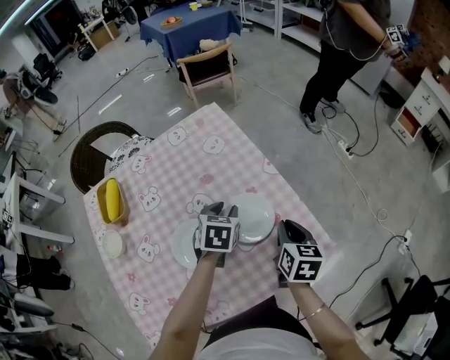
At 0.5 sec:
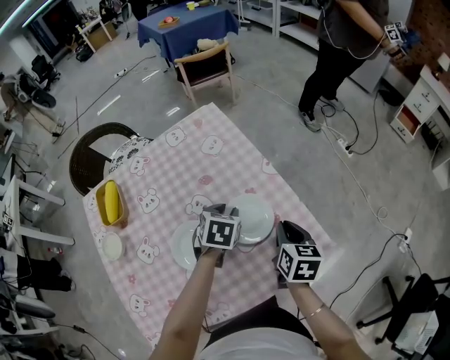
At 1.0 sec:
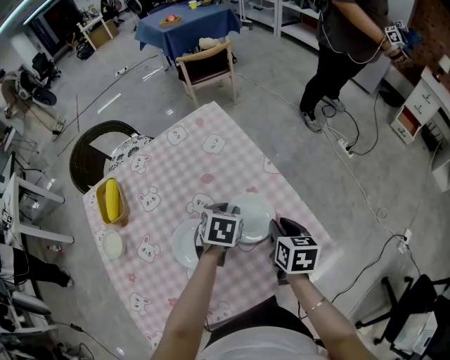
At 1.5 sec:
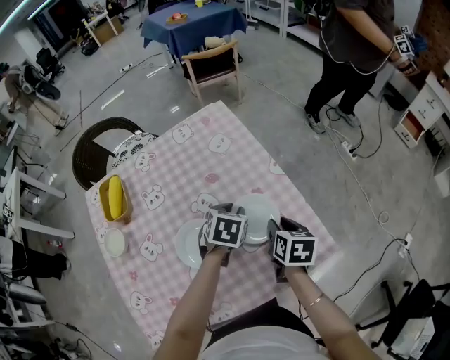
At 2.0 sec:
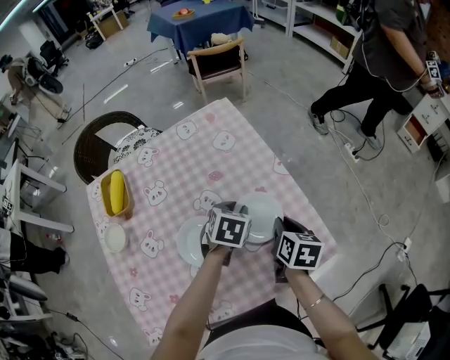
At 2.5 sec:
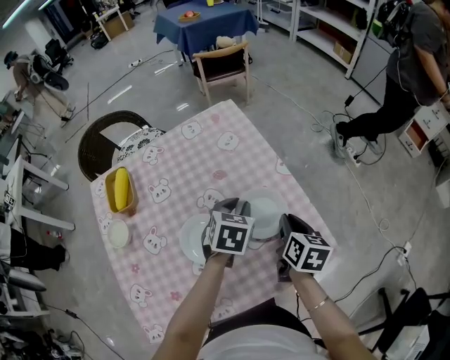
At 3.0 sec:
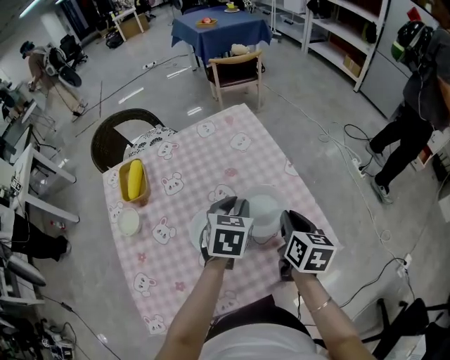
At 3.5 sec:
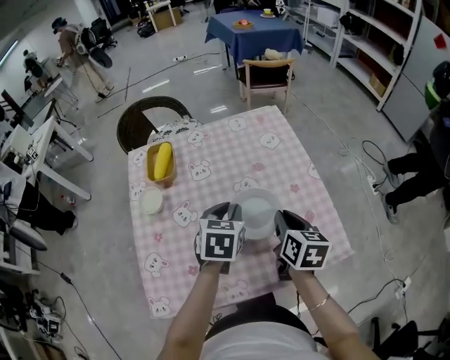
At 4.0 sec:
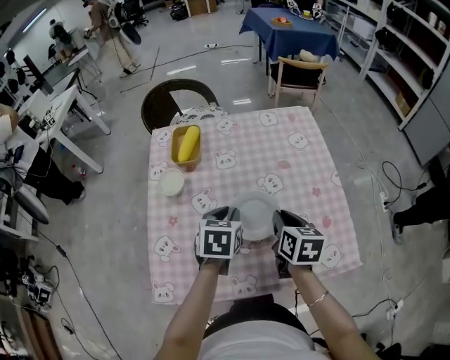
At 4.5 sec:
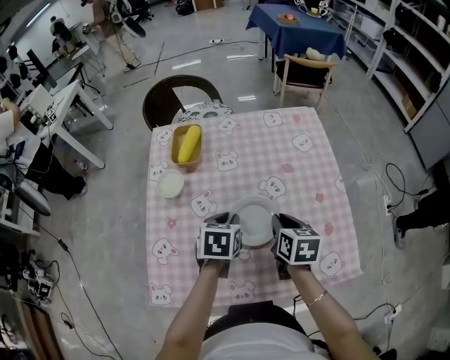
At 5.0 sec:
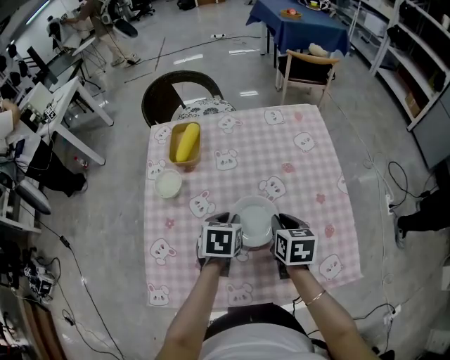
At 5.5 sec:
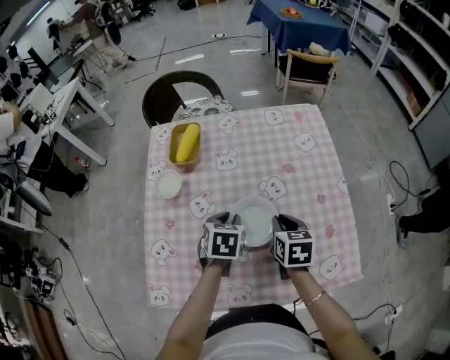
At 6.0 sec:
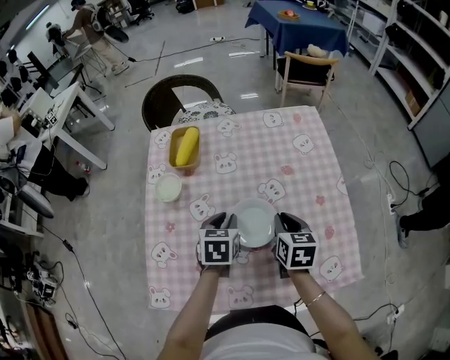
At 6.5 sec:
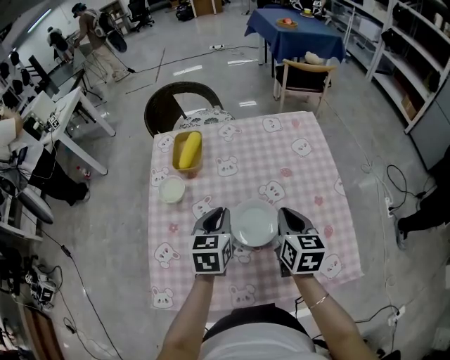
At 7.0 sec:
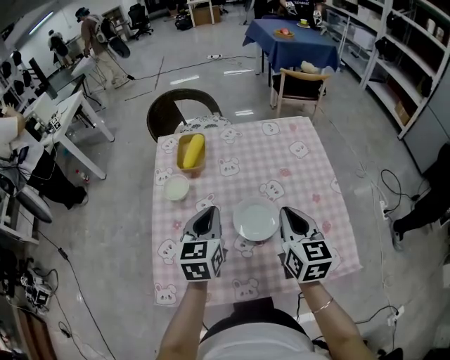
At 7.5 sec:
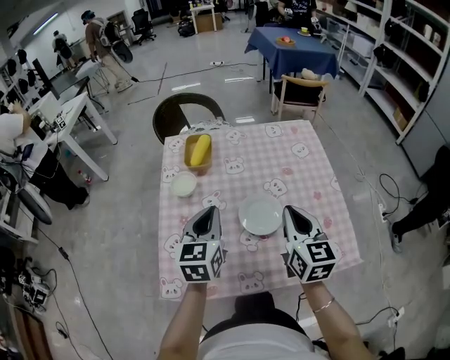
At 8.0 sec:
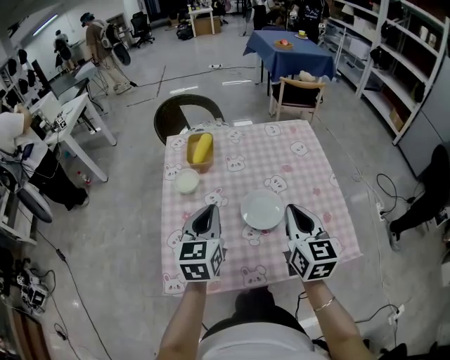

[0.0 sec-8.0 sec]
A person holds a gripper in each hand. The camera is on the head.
0.0 sec to 2.0 sec: The grippers stay close to where they were, moving slightly.
2.0 sec to 4.0 sec: The left gripper shifts by approximately 25 cm, and swivels approximately 30 degrees; the right gripper moves some 20 cm, and turns by approximately 30 degrees.
4.0 sec to 6.0 sec: The right gripper moves about 5 cm. The left gripper shifts by approximately 5 cm.
6.0 sec to 8.0 sec: The left gripper shifts some 20 cm upward, backward and to the left, and points its fingers about 30 degrees further upward; the right gripper heads upward and backward, covering about 20 cm, and turns by about 30 degrees.

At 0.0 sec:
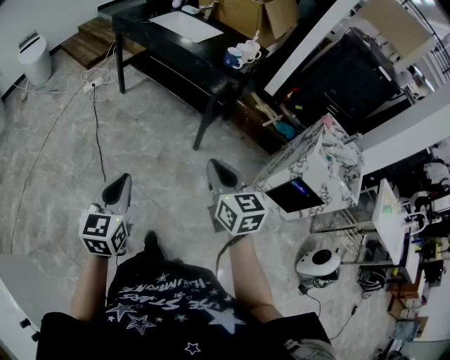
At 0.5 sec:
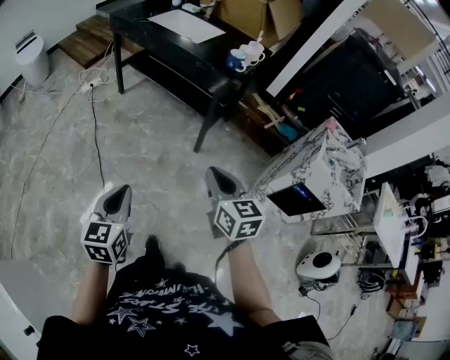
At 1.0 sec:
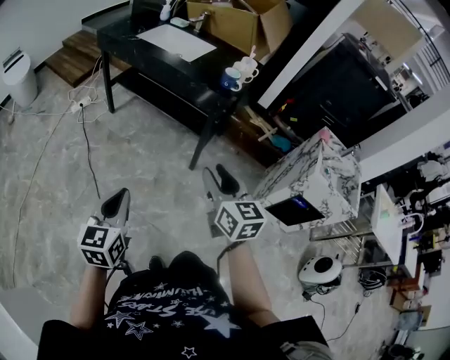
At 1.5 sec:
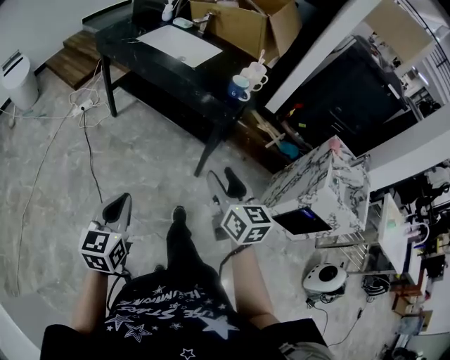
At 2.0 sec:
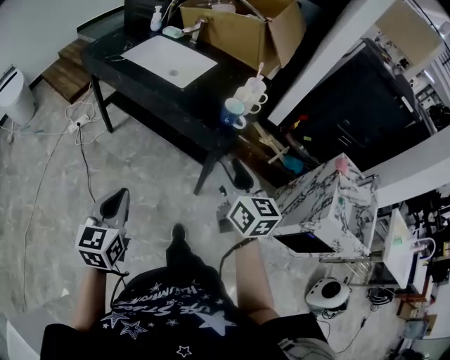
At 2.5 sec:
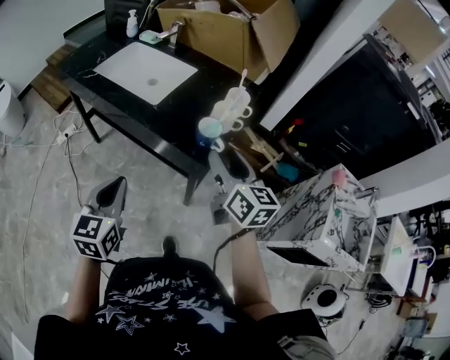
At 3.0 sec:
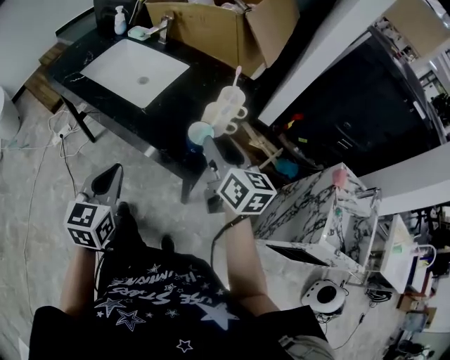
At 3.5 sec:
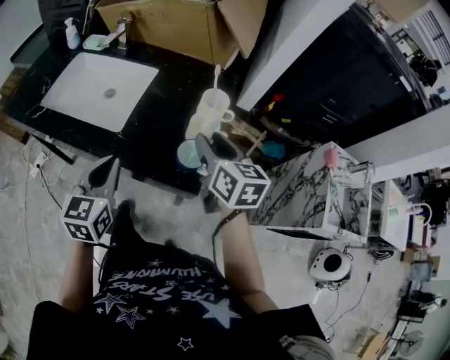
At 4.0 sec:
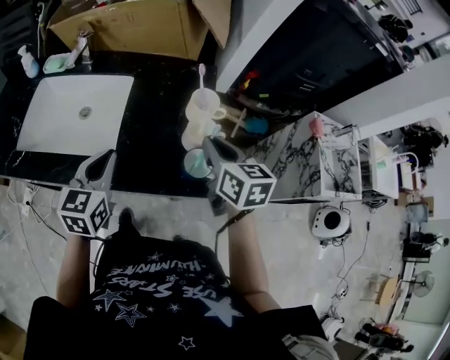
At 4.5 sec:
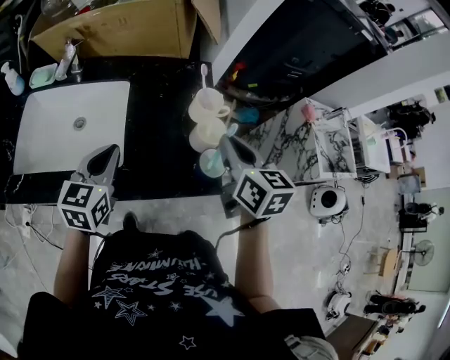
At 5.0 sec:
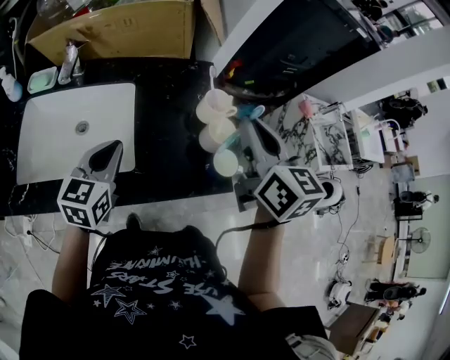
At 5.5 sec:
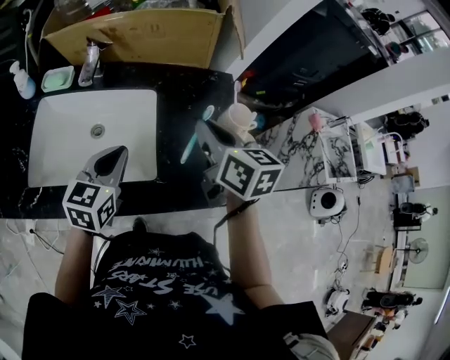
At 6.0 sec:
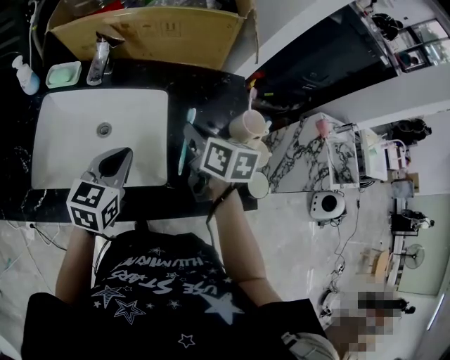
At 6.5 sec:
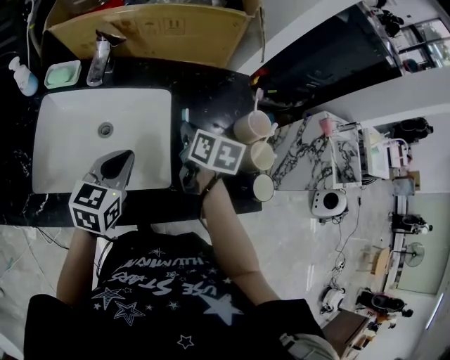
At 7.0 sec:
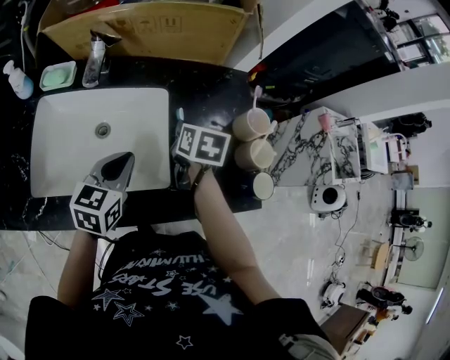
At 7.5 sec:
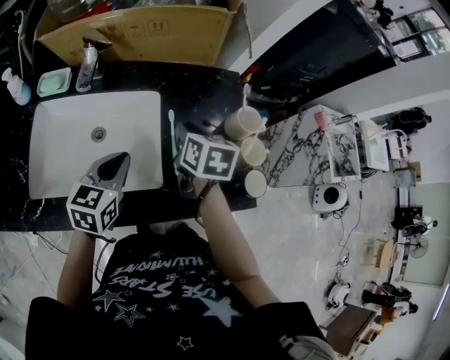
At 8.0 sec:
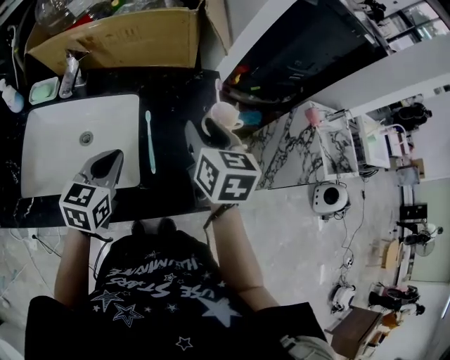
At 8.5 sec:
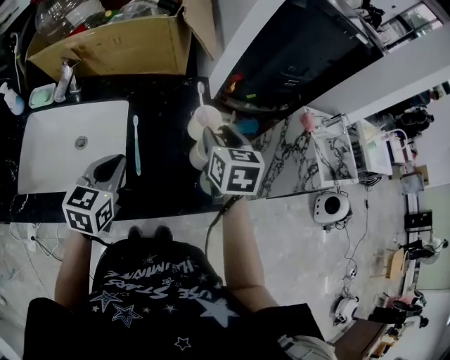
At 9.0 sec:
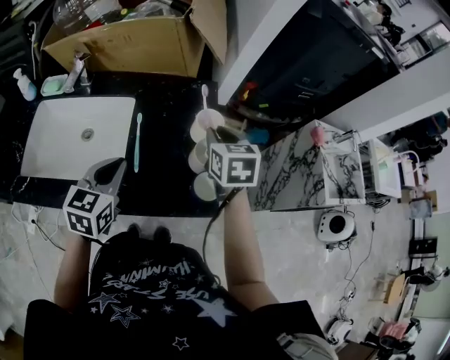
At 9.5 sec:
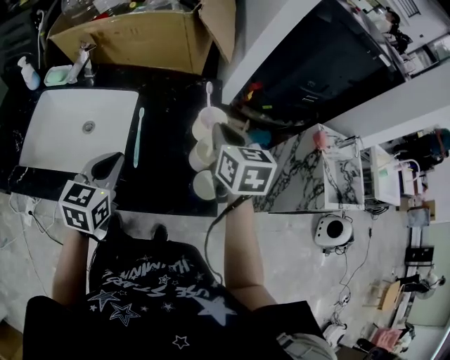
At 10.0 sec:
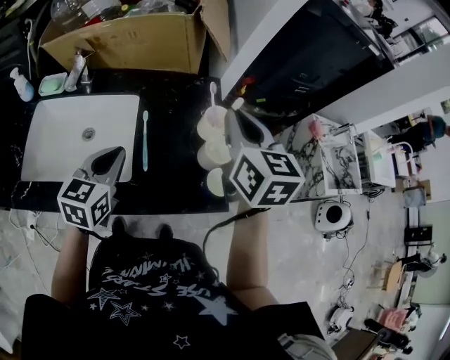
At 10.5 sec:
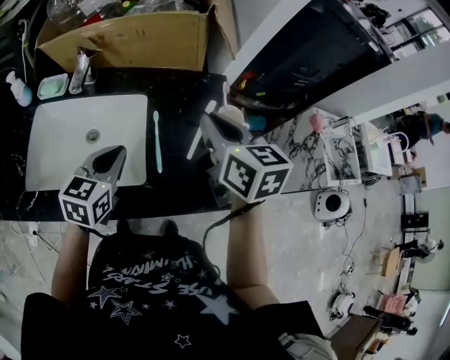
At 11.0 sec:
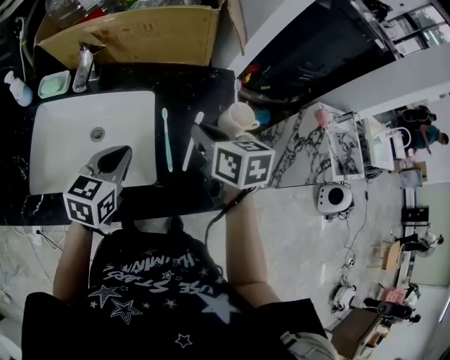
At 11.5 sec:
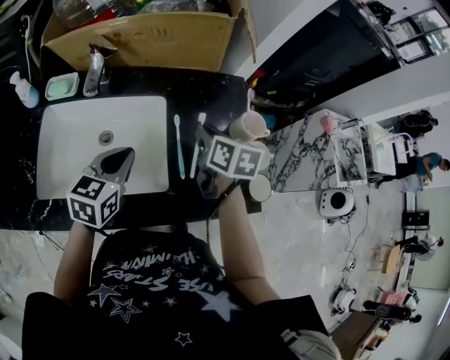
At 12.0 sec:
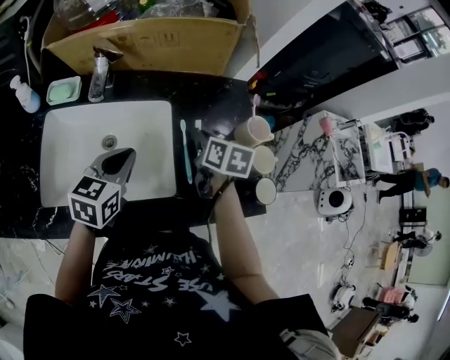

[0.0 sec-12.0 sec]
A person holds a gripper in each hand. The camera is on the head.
0.0 sec to 2.0 sec: Both grippers travel together forward, some 35 cm. The right gripper opens its fingers.
2.0 sec to 4.0 sec: The left gripper moves about 50 cm, and turns by roughly 30 degrees. Meanwhile the right gripper ends up roughly 30 cm from where it was, swivels approximately 30 degrees, and closes up.
4.0 sec to 6.0 sec: The right gripper shifts roughly 20 cm to the left and forward; the left gripper shifts roughly 15 cm to the left and forward.
6.0 sec to 8.0 sec: The right gripper goes about 10 cm to the right and upward, changes its angle by about 20 degrees, and opens up. Meanwhile the left gripper goes some 5 cm to the right.
8.0 sec to 10.0 sec: The right gripper moves upward and to the right, approximately 10 cm, and closes up.
10.0 sec to 12.0 sec: The left gripper goes roughly 10 cm to the left; the right gripper shifts some 25 cm downward and to the left, and turns by roughly 30 degrees.

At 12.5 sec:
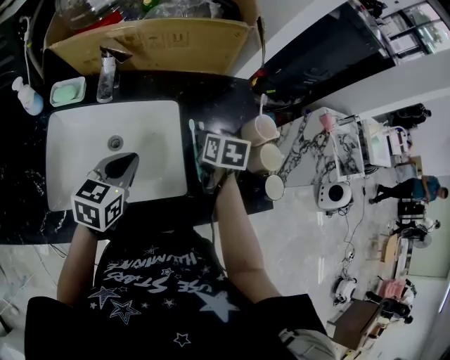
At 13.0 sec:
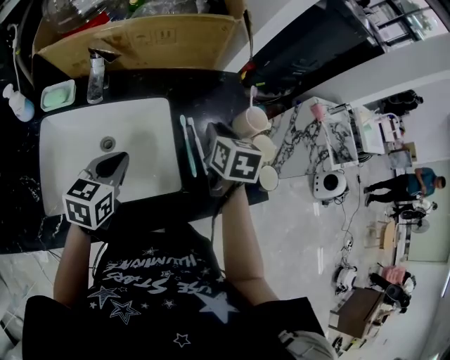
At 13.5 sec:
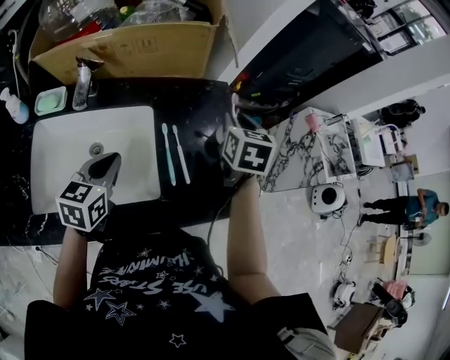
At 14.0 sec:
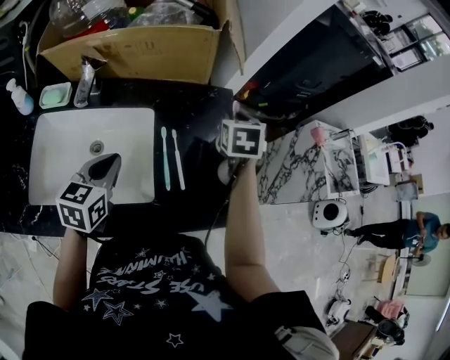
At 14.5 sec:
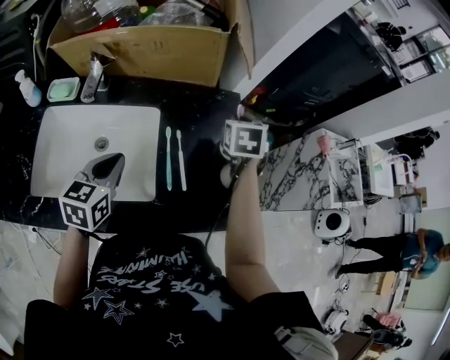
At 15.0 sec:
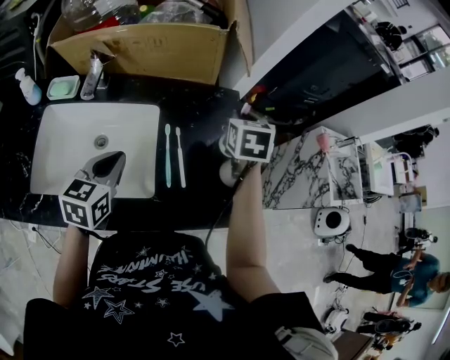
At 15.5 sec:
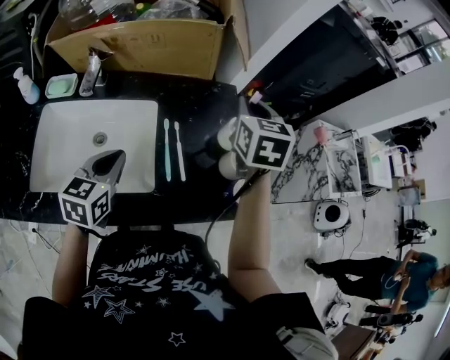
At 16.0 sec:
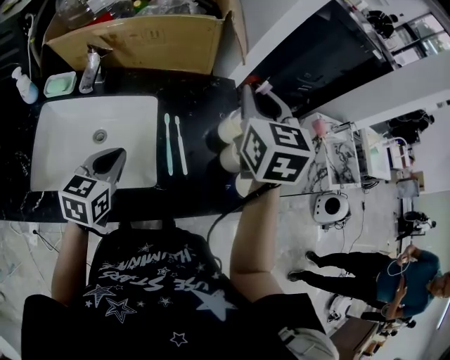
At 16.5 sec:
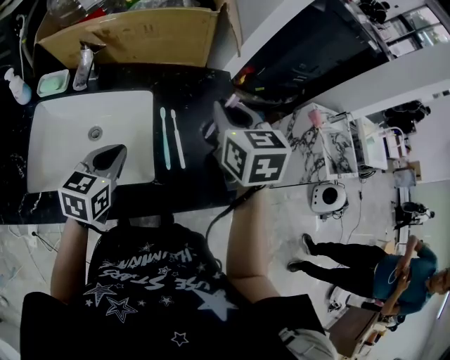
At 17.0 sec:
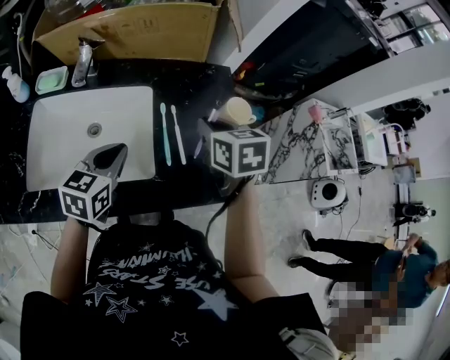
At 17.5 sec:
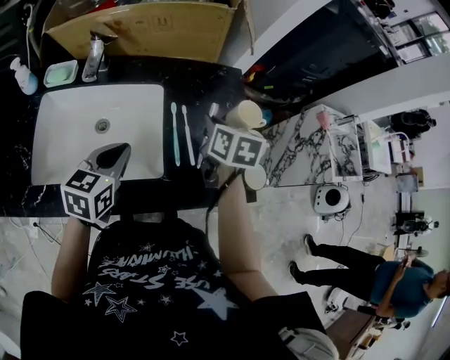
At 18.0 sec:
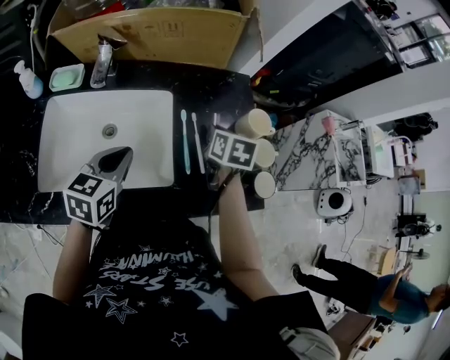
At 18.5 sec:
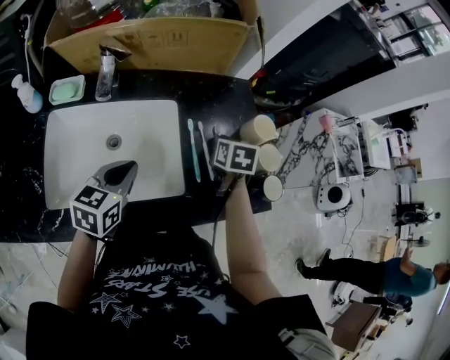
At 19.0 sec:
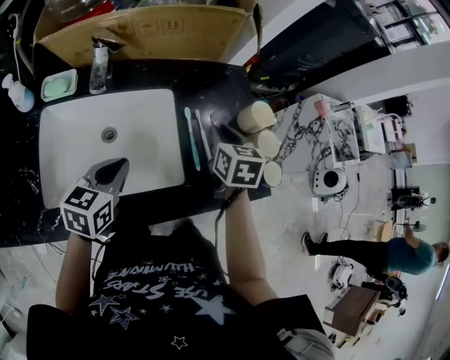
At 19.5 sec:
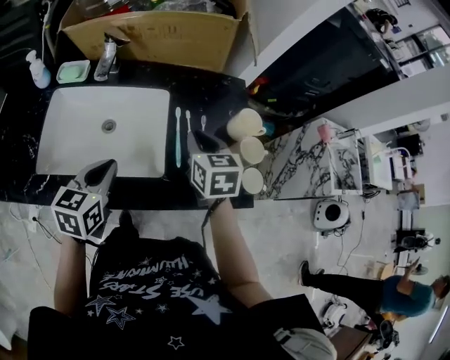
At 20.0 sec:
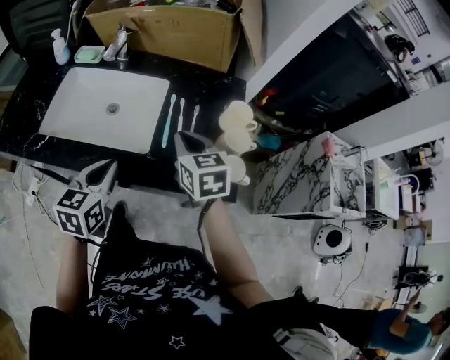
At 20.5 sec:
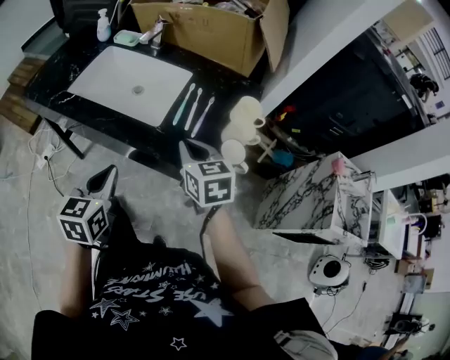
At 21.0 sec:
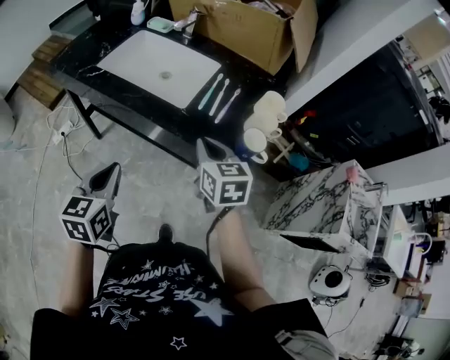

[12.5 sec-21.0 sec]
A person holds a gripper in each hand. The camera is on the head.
12.5 sec to 14.5 sec: The right gripper heads forward, to the right and upward, covering some 20 cm, and turns by some 30 degrees.
14.5 sec to 16.5 sec: The right gripper goes approximately 15 cm backward, upward and to the left, and swivels some 20 degrees.
16.5 sec to 19.0 sec: The right gripper goes about 15 cm downward, and rotates roughly 20 degrees, while the left gripper moves to the left, some 5 cm.
19.0 sec to 21.0 sec: The right gripper ends up approximately 20 cm from where it was, changes its angle by approximately 50 degrees, and closes its fingers. The left gripper moves some 35 cm, and changes its angle by some 50 degrees.
